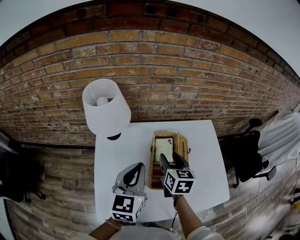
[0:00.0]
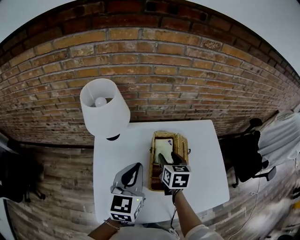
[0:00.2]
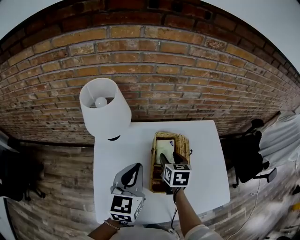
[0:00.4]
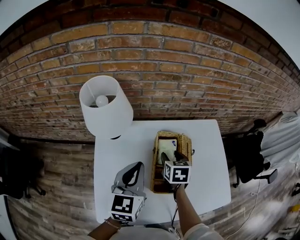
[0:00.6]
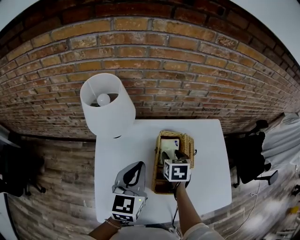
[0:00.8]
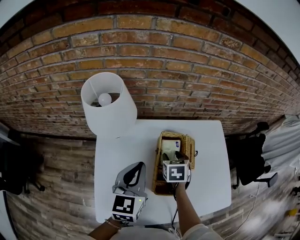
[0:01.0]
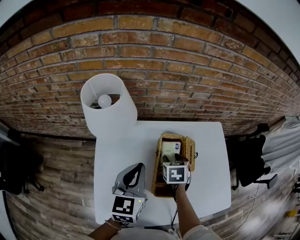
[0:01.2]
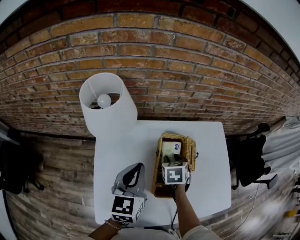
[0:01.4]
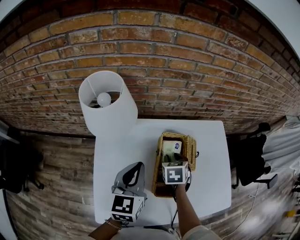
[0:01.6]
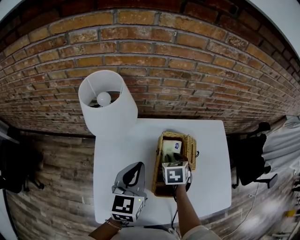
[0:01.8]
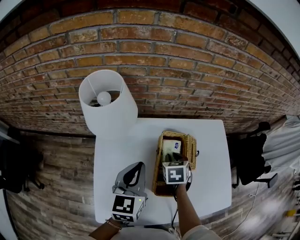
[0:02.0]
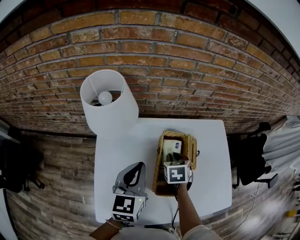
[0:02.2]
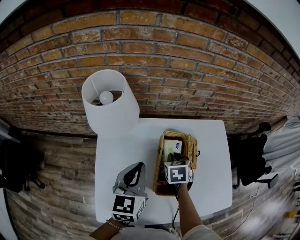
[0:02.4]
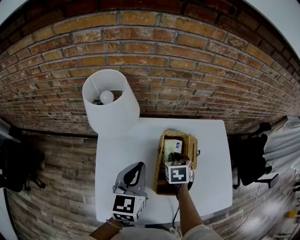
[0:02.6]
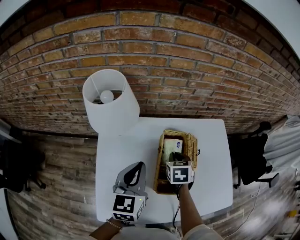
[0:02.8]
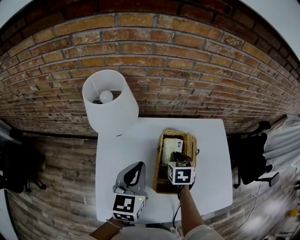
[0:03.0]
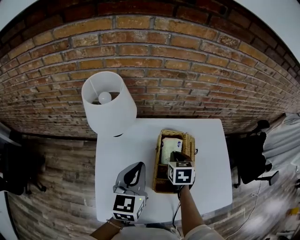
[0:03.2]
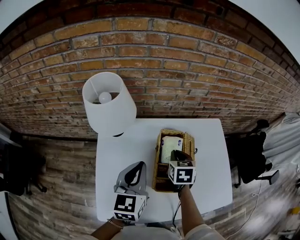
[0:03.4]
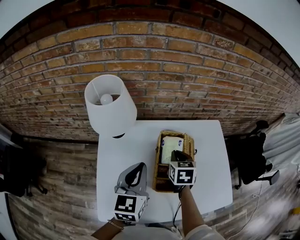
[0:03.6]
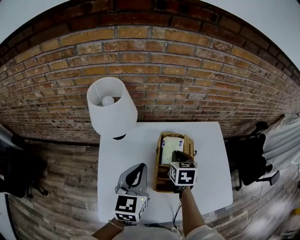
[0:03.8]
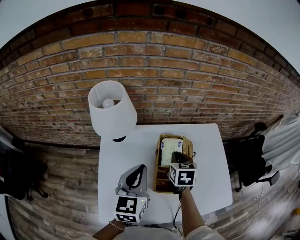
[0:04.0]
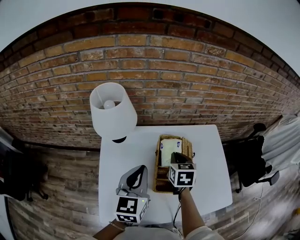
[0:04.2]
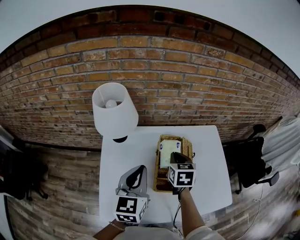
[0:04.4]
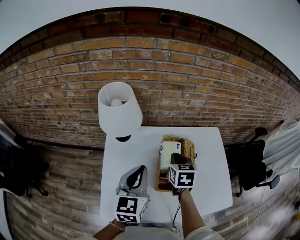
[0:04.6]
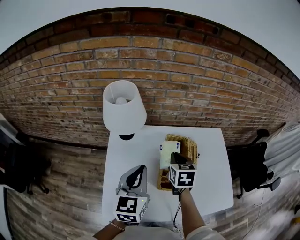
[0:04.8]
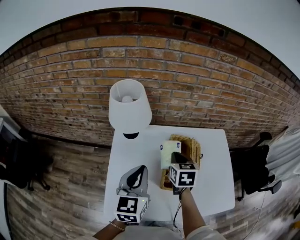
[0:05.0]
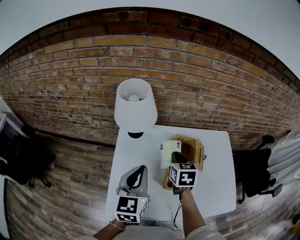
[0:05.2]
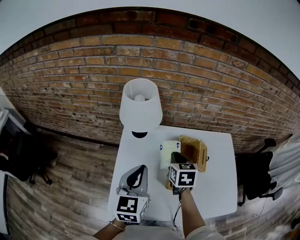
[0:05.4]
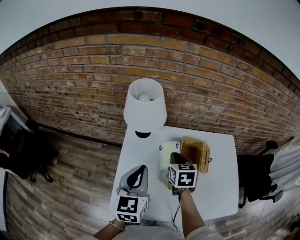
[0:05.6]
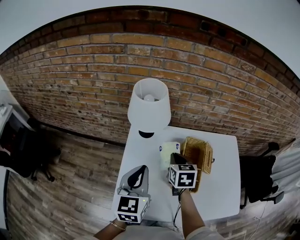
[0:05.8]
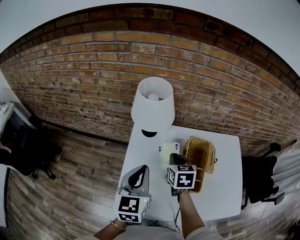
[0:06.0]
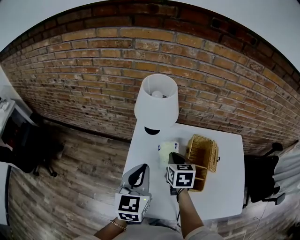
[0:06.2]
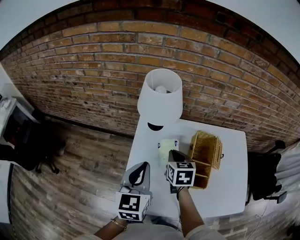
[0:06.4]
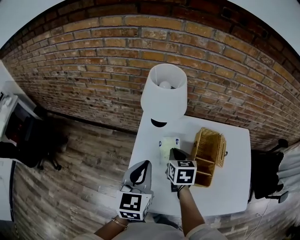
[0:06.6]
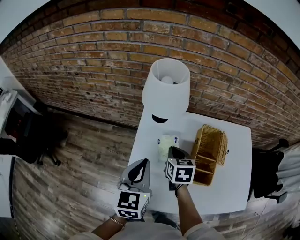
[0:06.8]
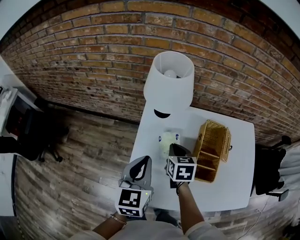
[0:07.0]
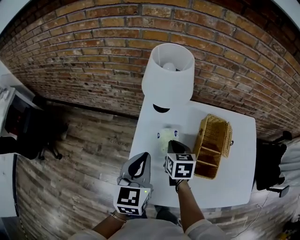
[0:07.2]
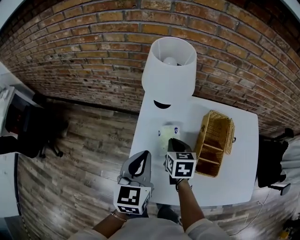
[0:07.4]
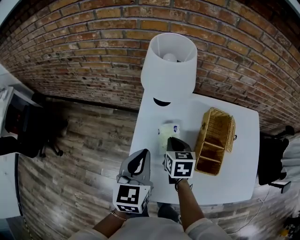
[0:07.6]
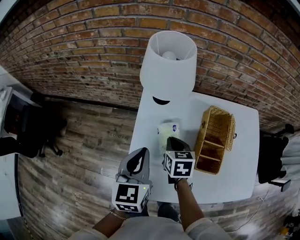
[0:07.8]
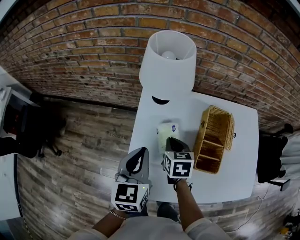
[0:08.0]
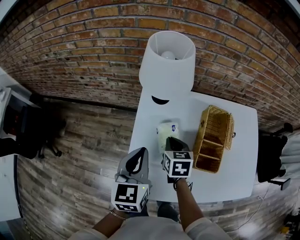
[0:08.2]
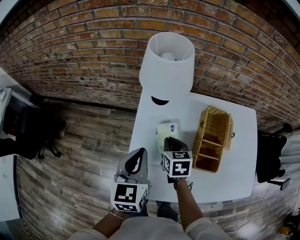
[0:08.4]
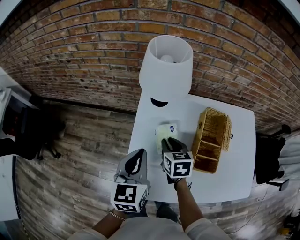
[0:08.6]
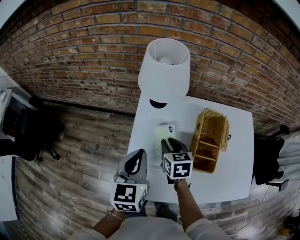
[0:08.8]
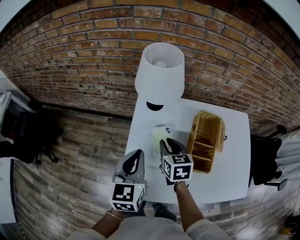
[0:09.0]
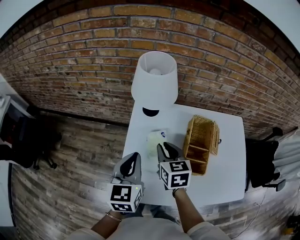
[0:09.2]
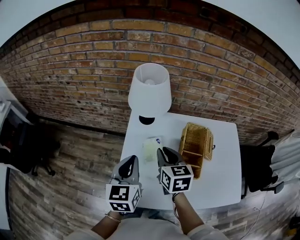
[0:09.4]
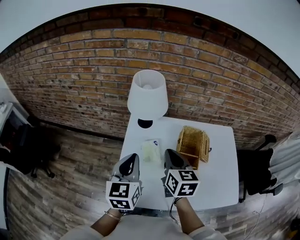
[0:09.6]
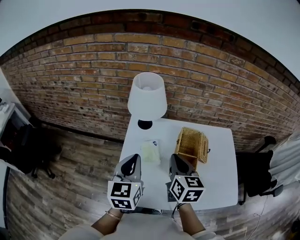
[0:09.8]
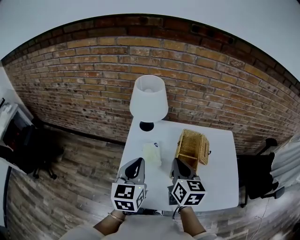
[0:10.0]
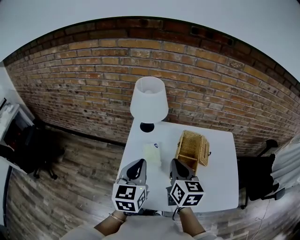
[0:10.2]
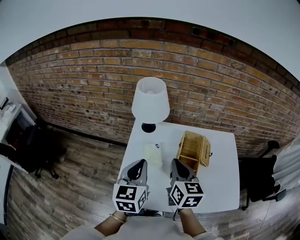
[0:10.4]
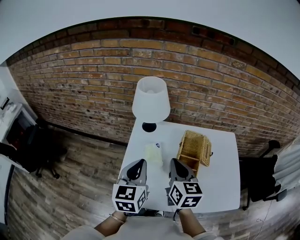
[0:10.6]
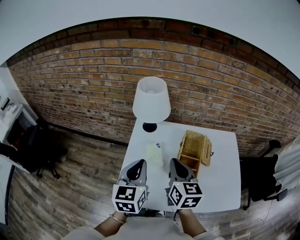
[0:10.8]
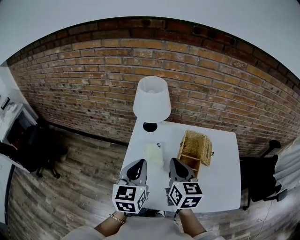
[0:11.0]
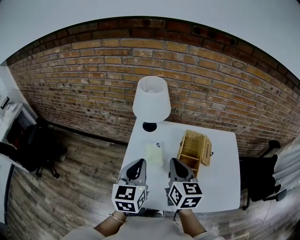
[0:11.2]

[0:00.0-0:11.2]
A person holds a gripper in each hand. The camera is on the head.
0:00.0 to 0:01.6: The left gripper changes place by some 5 cm; the right gripper heads downward and forward, covering some 10 cm, and changes its angle by roughly 30 degrees.
0:01.6 to 0:03.2: The right gripper closes.
0:03.2 to 0:04.8: The left gripper is displaced backward by about 5 cm; the right gripper shifts about 10 cm upward.
0:04.8 to 0:06.4: The grippers both shift to the left by approximately 15 cm.
0:06.4 to 0:08.0: The two grippers go approximately 5 cm downward.
0:08.0 to 0:09.6: The right gripper is displaced upward by some 15 cm, and turns by roughly 20 degrees. The left gripper heads upward, covering approximately 5 cm.
0:09.6 to 0:11.2: The right gripper travels backward by about 5 cm.

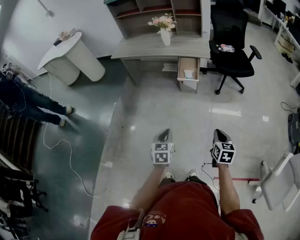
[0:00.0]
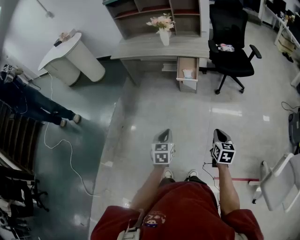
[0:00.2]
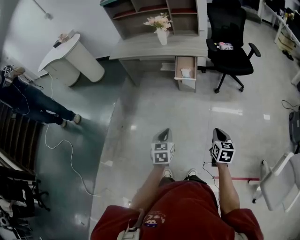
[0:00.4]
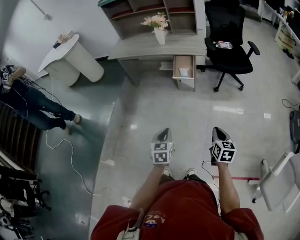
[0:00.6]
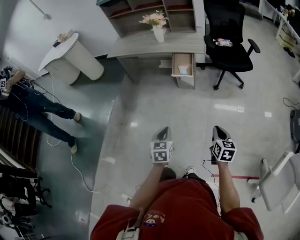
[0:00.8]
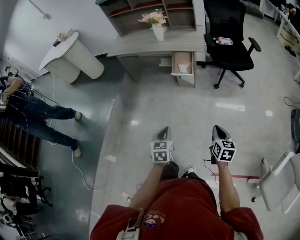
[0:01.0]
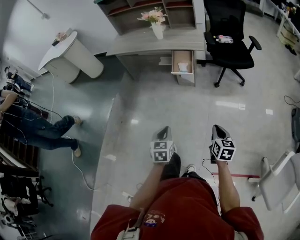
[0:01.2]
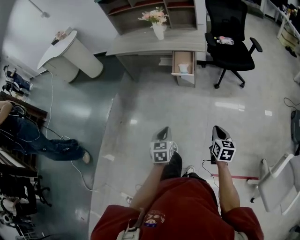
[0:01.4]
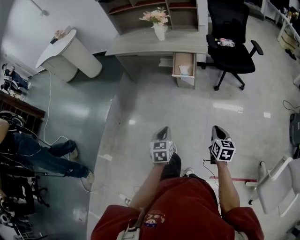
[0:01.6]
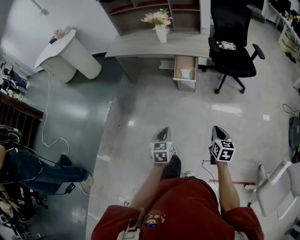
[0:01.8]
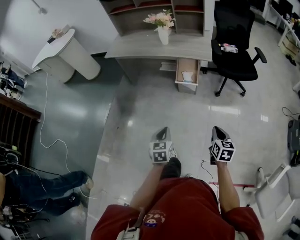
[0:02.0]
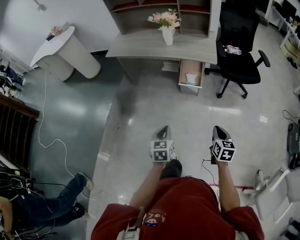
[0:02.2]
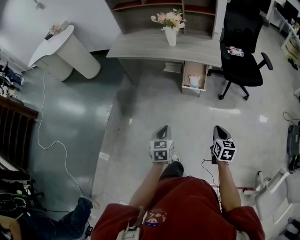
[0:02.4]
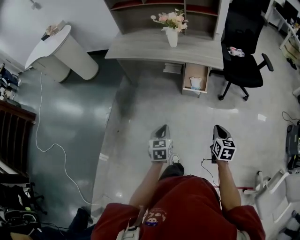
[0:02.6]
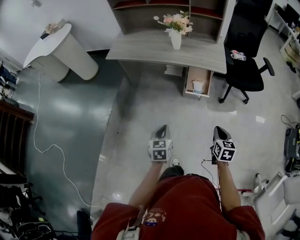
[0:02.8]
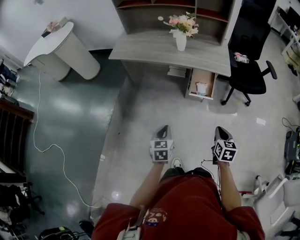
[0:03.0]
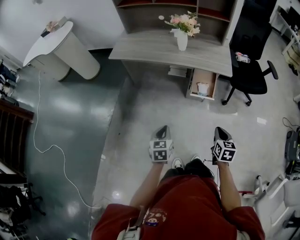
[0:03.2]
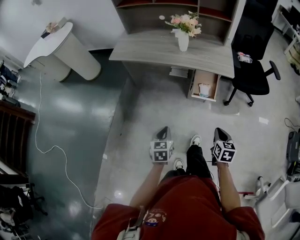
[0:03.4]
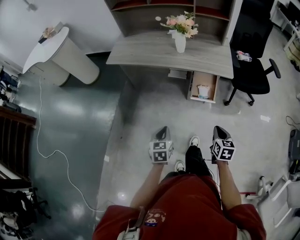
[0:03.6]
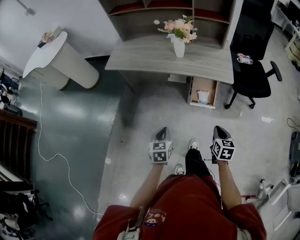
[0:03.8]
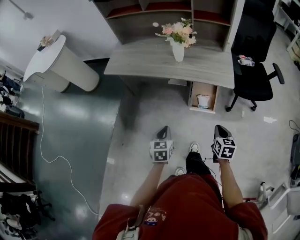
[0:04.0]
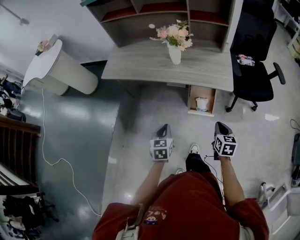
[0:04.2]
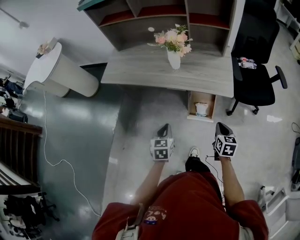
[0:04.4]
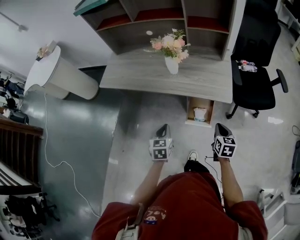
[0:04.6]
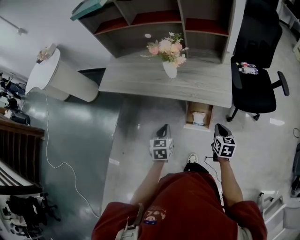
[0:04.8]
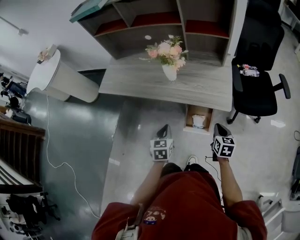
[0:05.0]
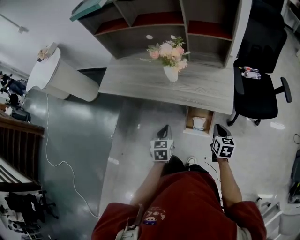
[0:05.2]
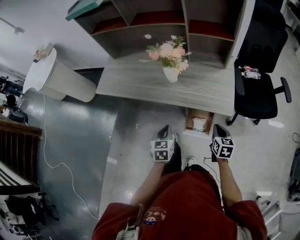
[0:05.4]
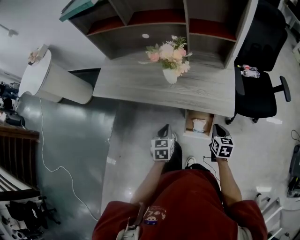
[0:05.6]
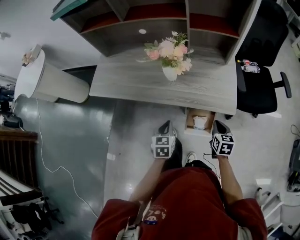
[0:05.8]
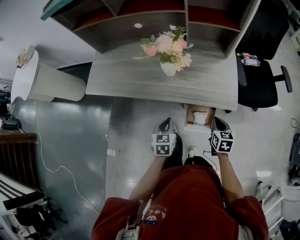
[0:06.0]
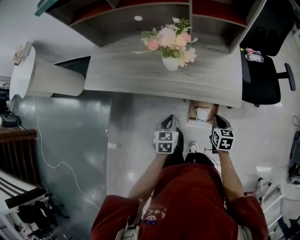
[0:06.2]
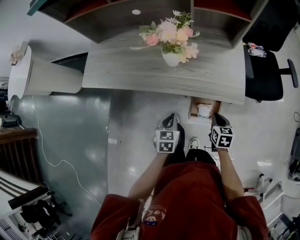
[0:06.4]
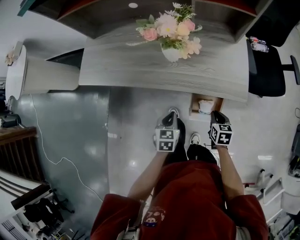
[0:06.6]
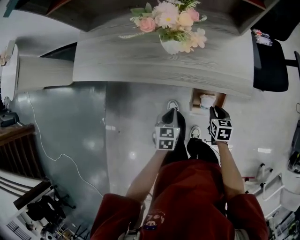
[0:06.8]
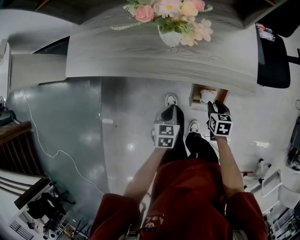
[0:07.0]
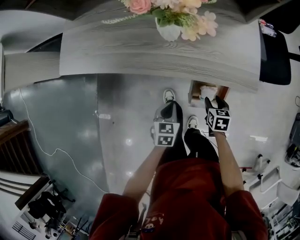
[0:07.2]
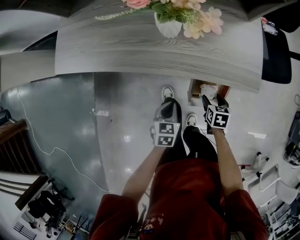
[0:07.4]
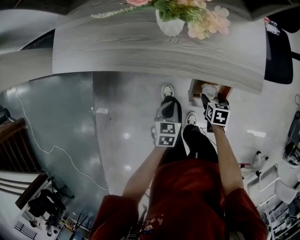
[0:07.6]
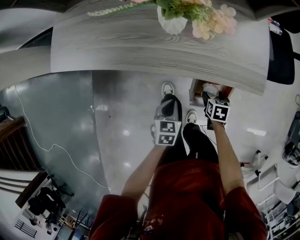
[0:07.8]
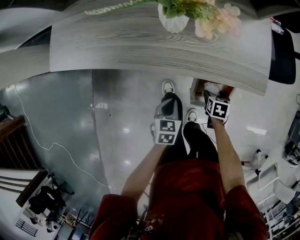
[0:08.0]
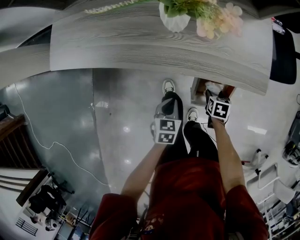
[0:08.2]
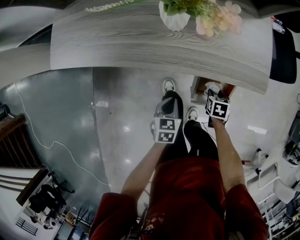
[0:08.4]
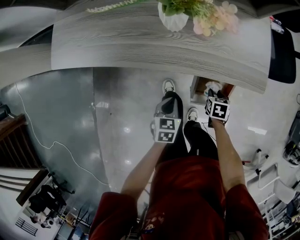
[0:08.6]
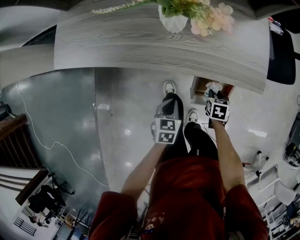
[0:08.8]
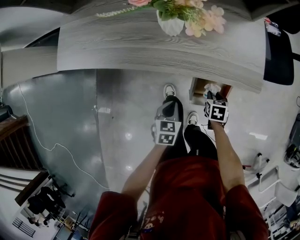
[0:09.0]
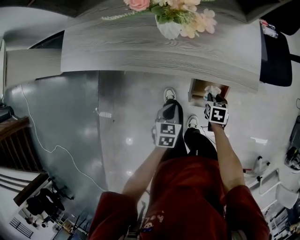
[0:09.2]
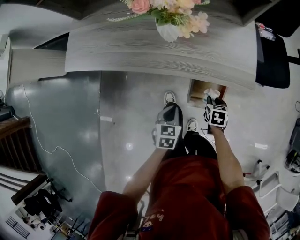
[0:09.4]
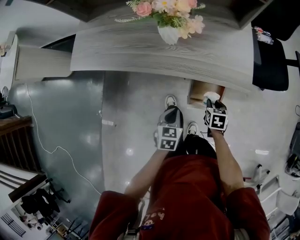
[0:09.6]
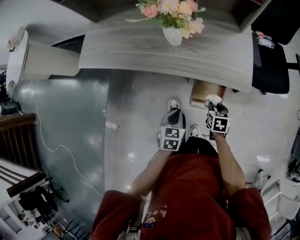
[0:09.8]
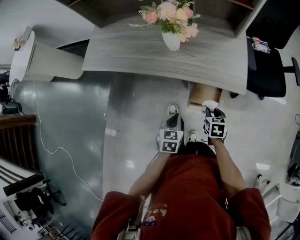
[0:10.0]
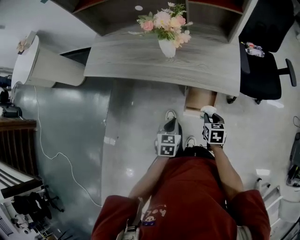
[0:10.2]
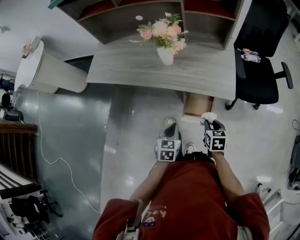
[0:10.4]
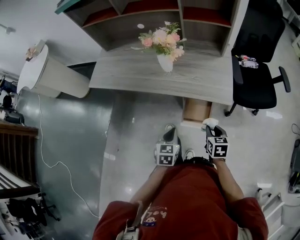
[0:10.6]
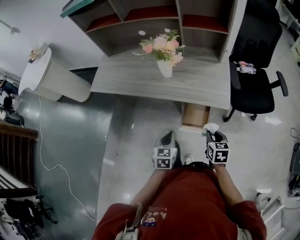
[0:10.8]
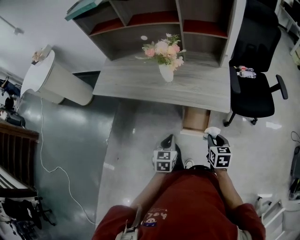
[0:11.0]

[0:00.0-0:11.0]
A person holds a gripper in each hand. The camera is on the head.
0:00.0 to 0:01.6: The right gripper moves to the right and forward, approximately 10 cm. Meanwhile the left gripper travels to the right by roughly 5 cm.
0:01.6 to 0:03.2: Both grippers move forward and to the left, approximately 30 cm.
0:03.2 to 0:04.8: Both grippers move forward, some 30 cm.
0:04.8 to 0:06.2: The right gripper travels forward, downward and to the left by roughly 15 cm; the left gripper goes roughly 15 cm forward and downward.
0:06.2 to 0:07.8: The grippers both shift downward by some 20 cm. The right gripper changes its angle by roughly 20 degrees, and opens its fingers.
0:07.8 to 0:09.4: Both grippers move upward, roughly 5 cm. The right gripper closes its fingers.
0:09.4 to 0:11.0: Both grippers move upward and backward, some 20 cm. The right gripper changes its angle by roughly 20 degrees.

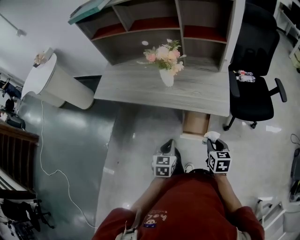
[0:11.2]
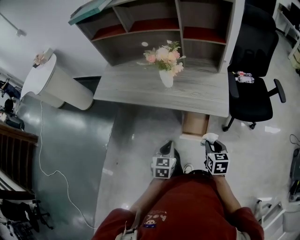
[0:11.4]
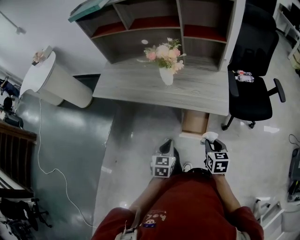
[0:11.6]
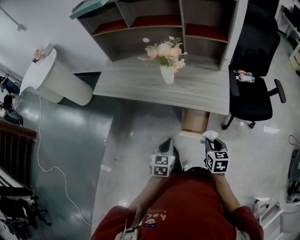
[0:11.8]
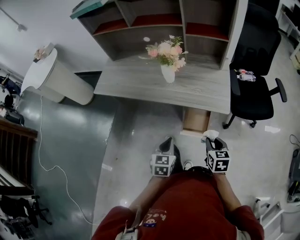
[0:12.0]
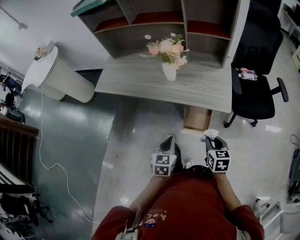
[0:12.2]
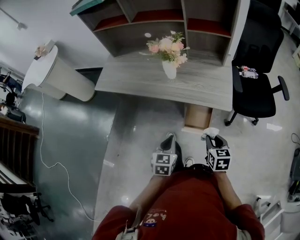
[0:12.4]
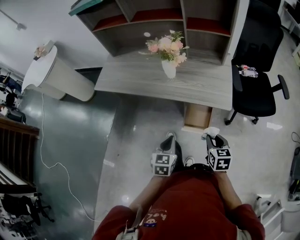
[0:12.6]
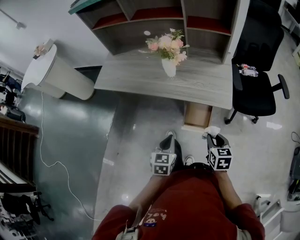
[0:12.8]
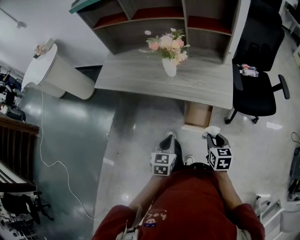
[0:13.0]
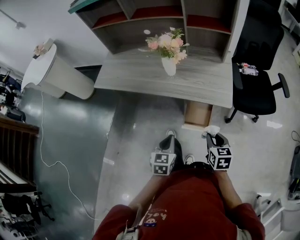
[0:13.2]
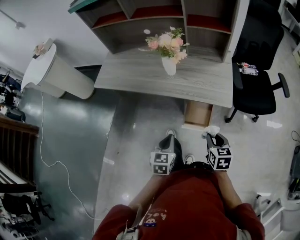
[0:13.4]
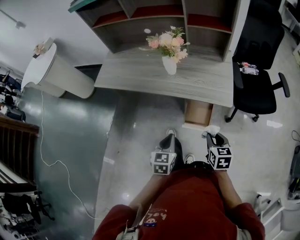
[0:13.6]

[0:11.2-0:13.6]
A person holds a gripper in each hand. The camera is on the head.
0:11.2 to 0:12.4: The grippers make only small movements.
0:12.4 to 0:13.6: Neither gripper changes place.
